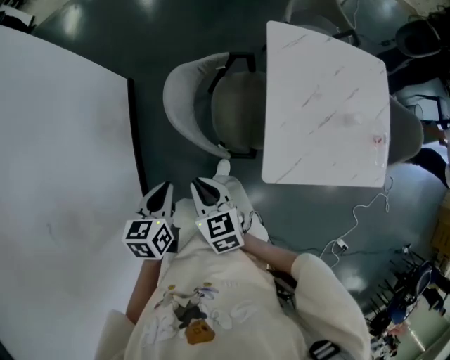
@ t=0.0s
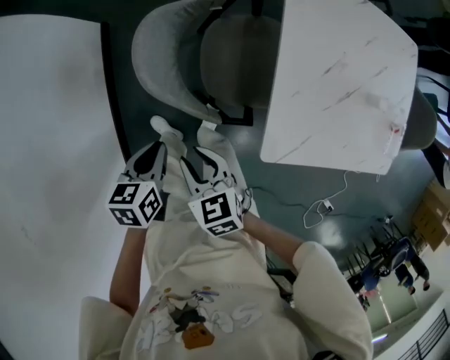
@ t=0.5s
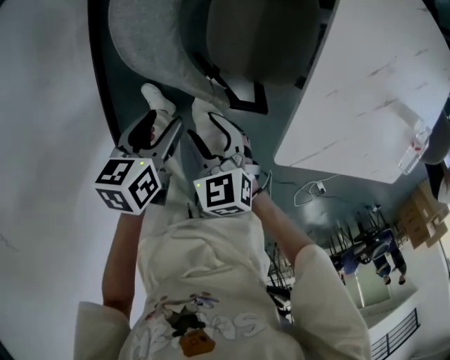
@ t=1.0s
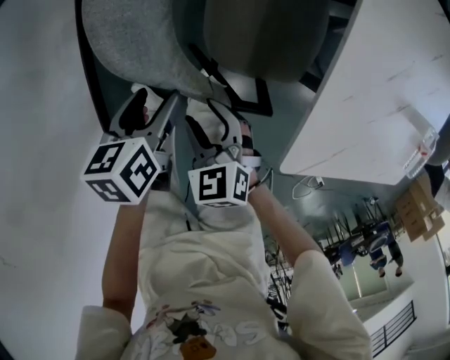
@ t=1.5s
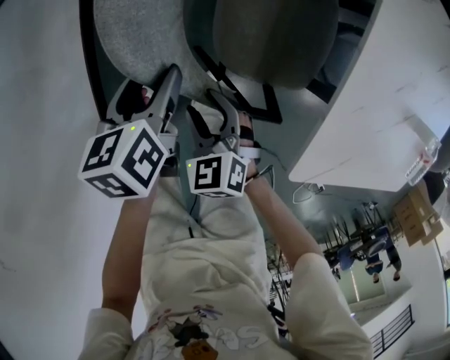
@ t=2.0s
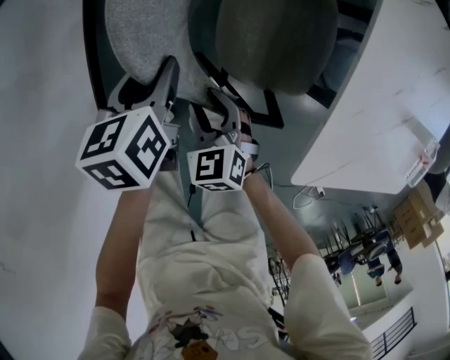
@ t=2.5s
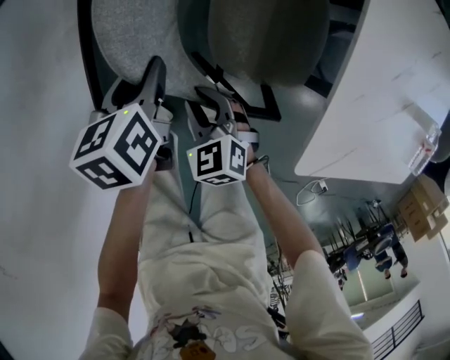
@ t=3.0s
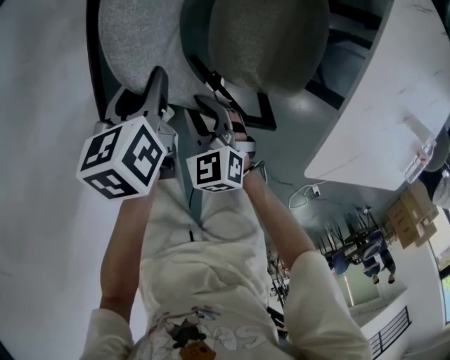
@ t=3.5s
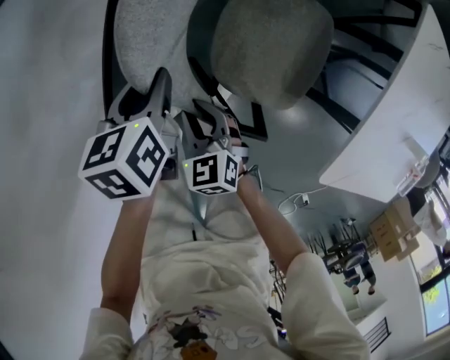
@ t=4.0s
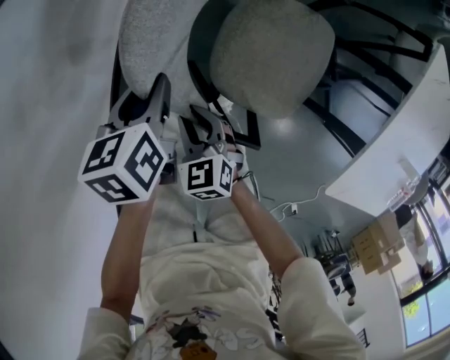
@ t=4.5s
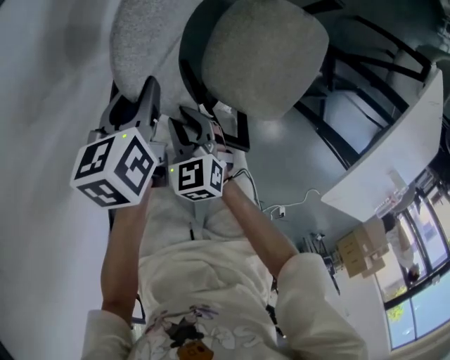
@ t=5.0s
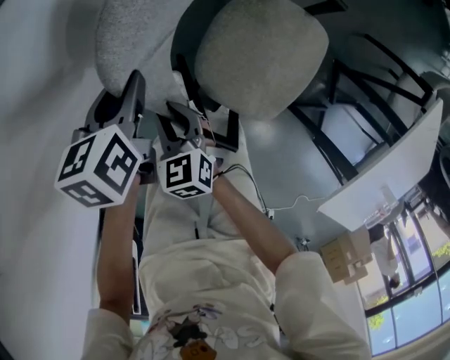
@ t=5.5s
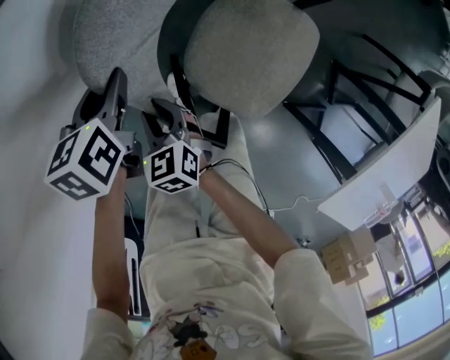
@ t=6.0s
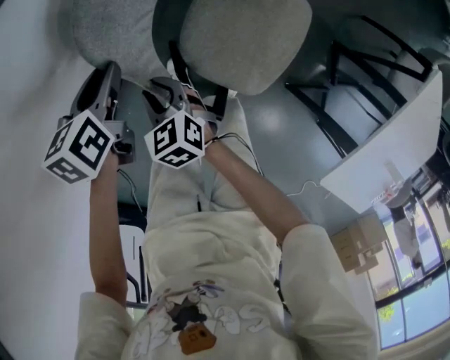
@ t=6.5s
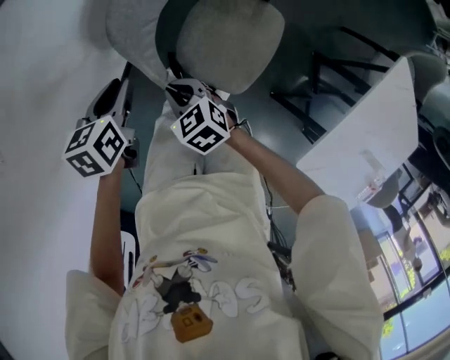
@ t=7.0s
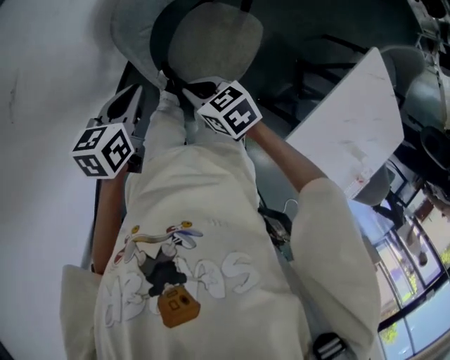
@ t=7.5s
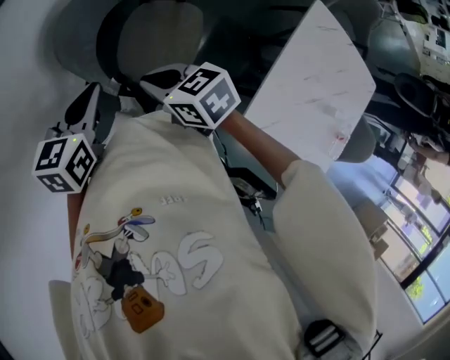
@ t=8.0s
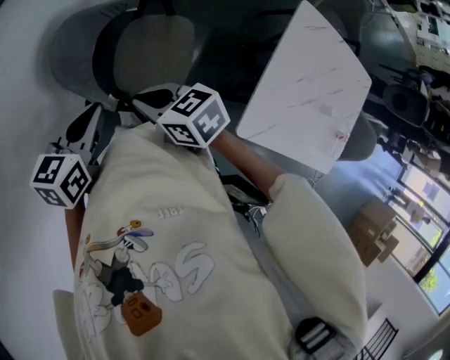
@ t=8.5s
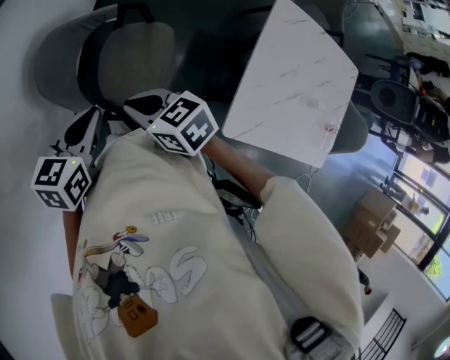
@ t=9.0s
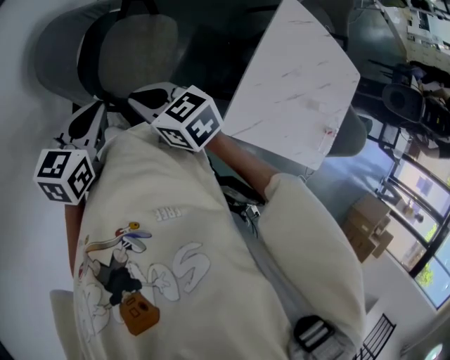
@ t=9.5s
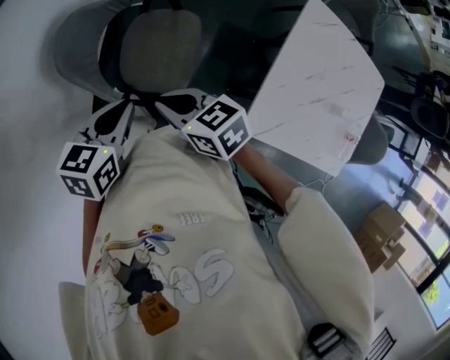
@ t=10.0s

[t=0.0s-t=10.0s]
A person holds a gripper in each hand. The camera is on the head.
t=0.0s to t=2.0s: The left gripper heads downward and forward, covering some 30 cm, and opens up. The right gripper moves downward, some 30 cm, turns by approximately 30 degrees, and opens up.
t=2.0s to t=4.0s: Both grippers move to the left, approximately 15 cm. The left gripper closes its fingers; the right gripper closes its fingers.
t=4.0s to t=6.0s: The right gripper shifts by some 25 cm; the left gripper shifts by about 25 cm, and turns by some 20 degrees.
t=6.0s to t=8.0s: The right gripper travels upward and to the right by about 35 cm, turns by approximately 20 degrees, and closes; the left gripper goes some 35 cm upward, backward and to the right, and swivels about 30 degrees.
t=8.0s to t=10.0s: The two grippers go roughly 10 cm to the right and backward.

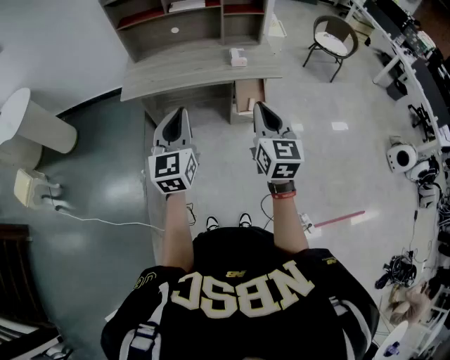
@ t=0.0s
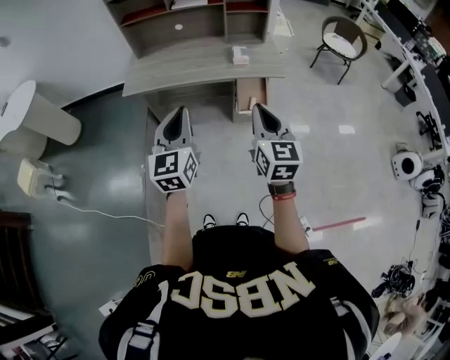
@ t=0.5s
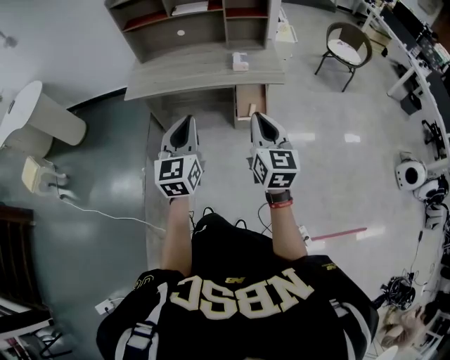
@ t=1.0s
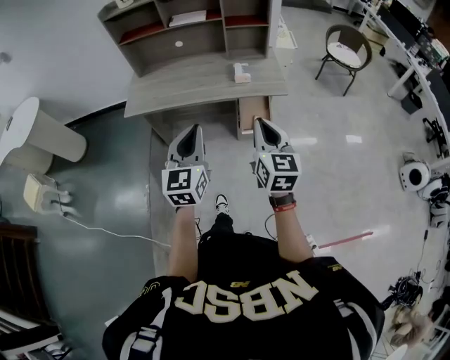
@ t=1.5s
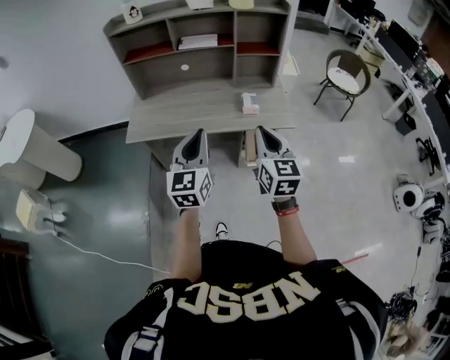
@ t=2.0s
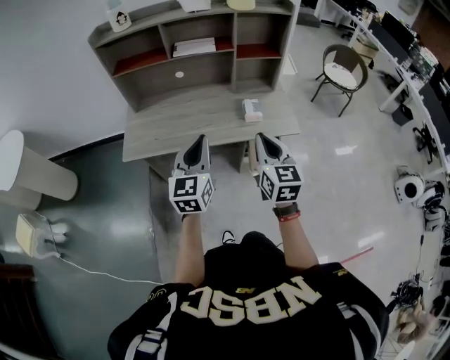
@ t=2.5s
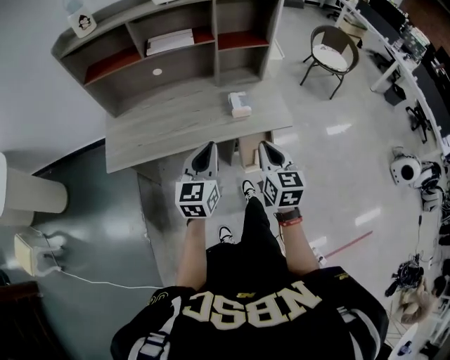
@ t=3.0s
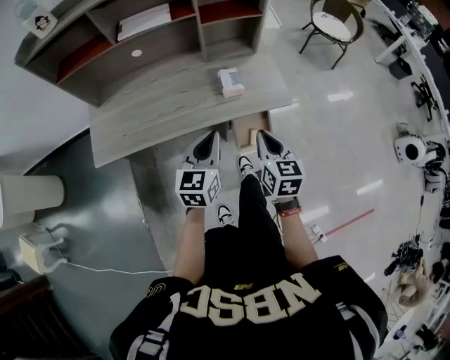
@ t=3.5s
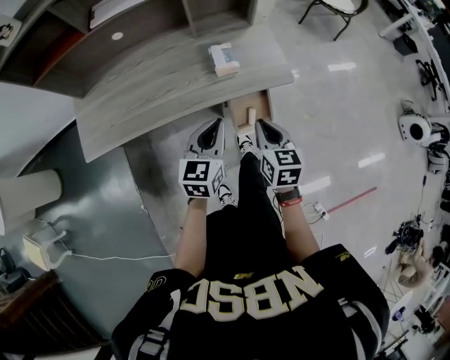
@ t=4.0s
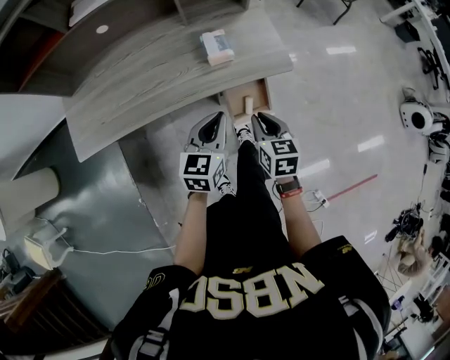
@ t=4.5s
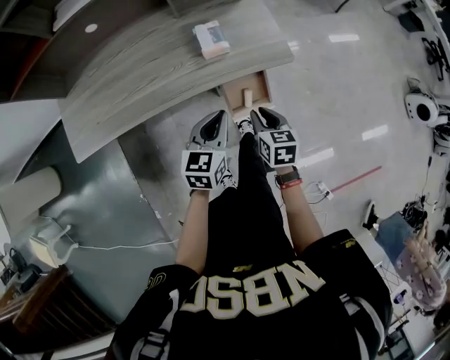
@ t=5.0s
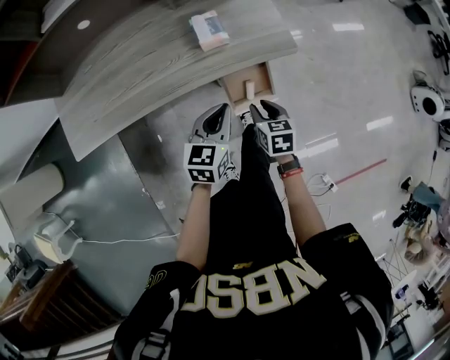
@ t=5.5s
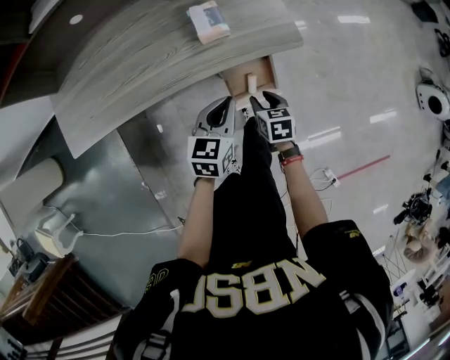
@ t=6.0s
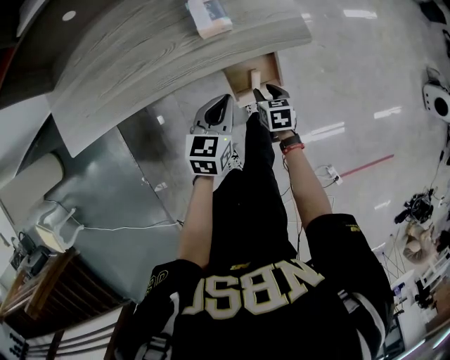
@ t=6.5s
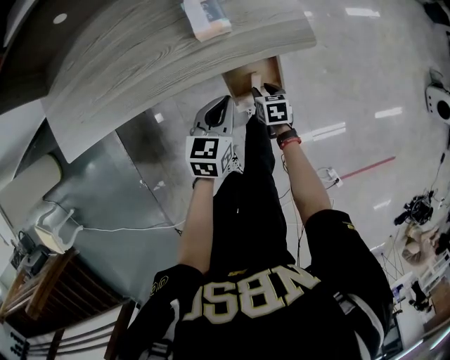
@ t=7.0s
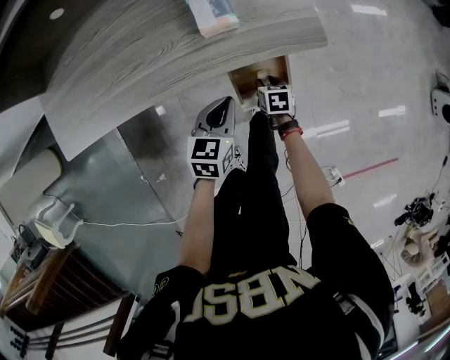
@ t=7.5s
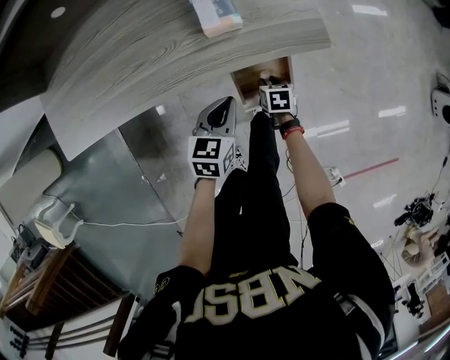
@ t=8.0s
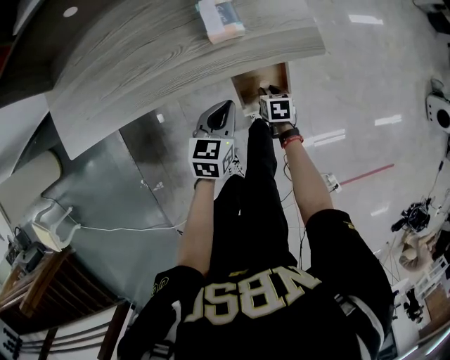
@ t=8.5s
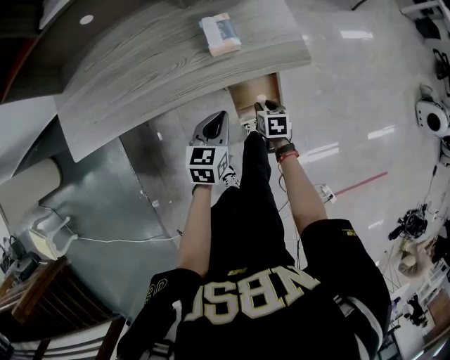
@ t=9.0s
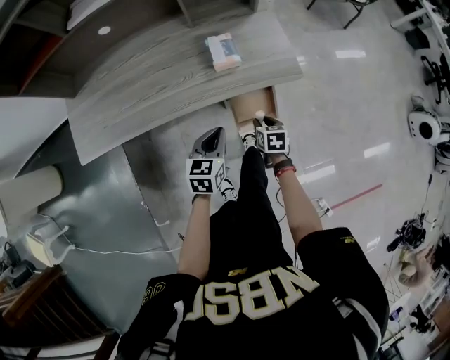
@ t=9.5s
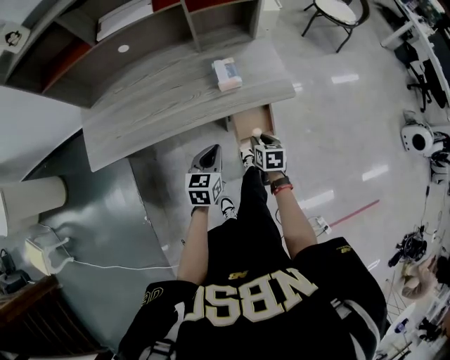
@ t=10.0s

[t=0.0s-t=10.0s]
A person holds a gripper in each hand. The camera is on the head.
t=0.0s to t=2.0s: The grippers both shift forward by roughly 20 cm.
t=2.0s to t=4.0s: The right gripper is displaced downward and forward by roughly 30 cm, and changes its angle by some 30 degrees; the left gripper travels downward, forward and to the right by about 30 cm, and swivels about 30 degrees.
t=4.0s to t=6.0s: The left gripper shifts roughly 15 cm downward and to the right. The right gripper moves downward, roughly 20 cm, changes its angle by roughly 20 degrees, and opens.
t=6.0s to t=8.0s: The right gripper moves downward and forward, about 15 cm; the left gripper is displaced downward by roughly 10 cm.
t=8.0s to t=10.0s: The left gripper goes some 15 cm upward, backward and to the left. Meanwhile the right gripper travels upward by approximately 20 cm.

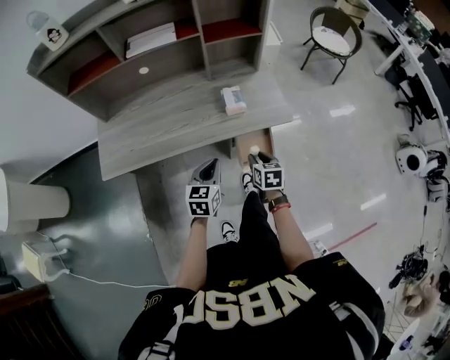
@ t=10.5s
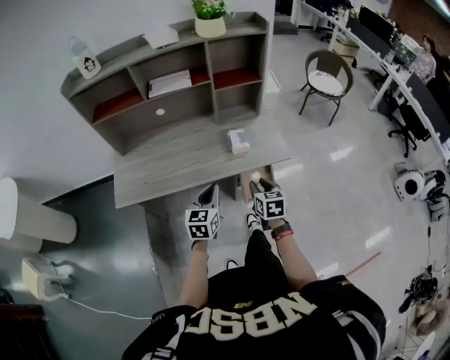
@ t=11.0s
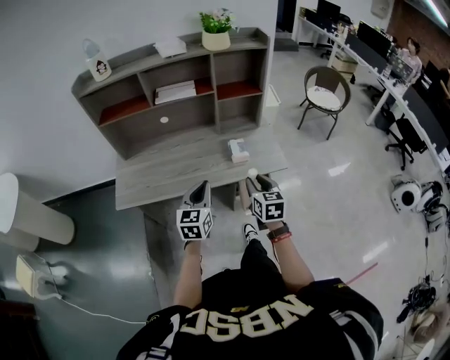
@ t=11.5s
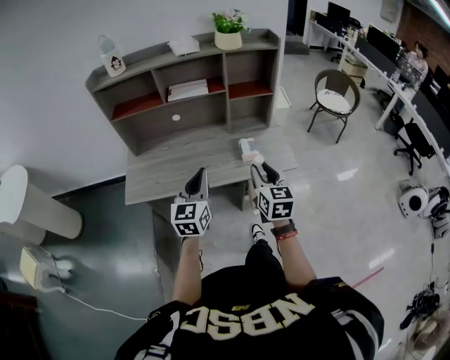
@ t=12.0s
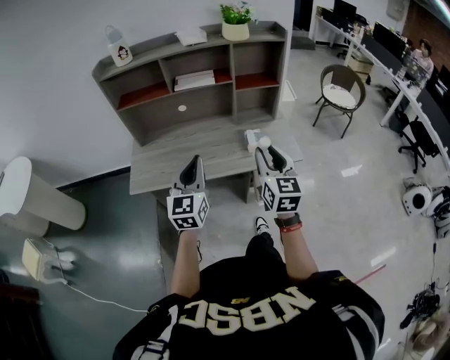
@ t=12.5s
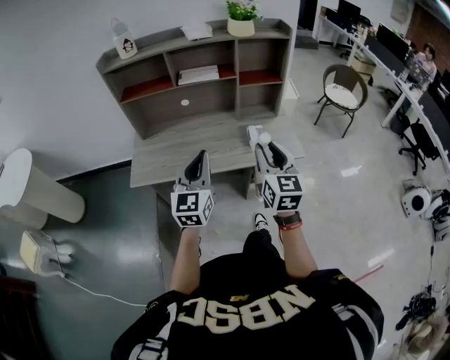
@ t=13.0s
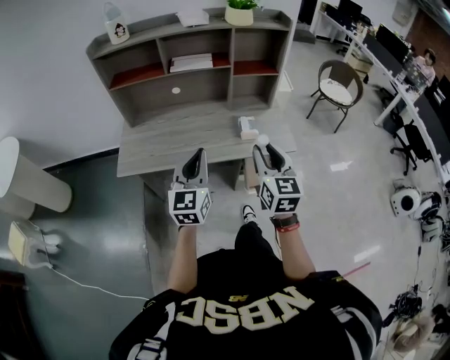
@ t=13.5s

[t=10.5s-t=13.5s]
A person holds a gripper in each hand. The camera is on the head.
t=10.5s to t=12.0s: The right gripper moves upward, roughly 25 cm, and tilts its fingers about 30 degrees upward. The left gripper travels upward and to the left by some 25 cm, and rotates about 30 degrees.
t=12.0s to t=13.5s: The right gripper moves about 5 cm.

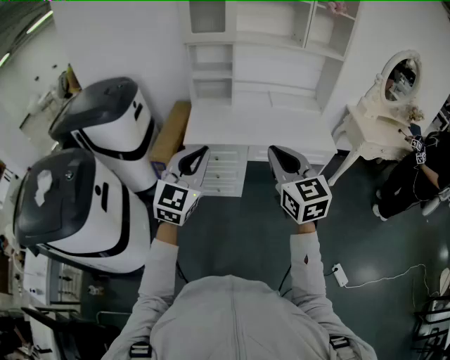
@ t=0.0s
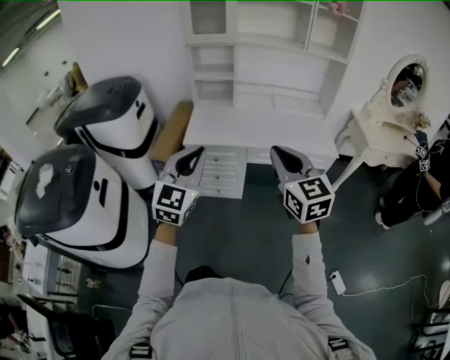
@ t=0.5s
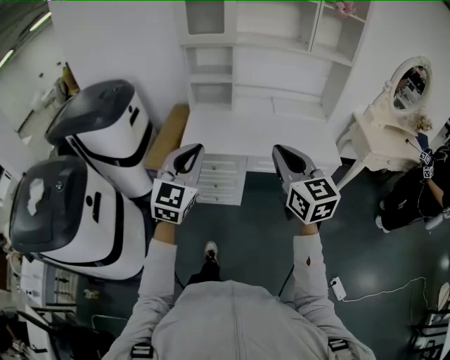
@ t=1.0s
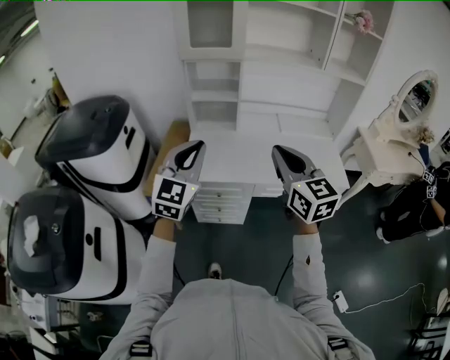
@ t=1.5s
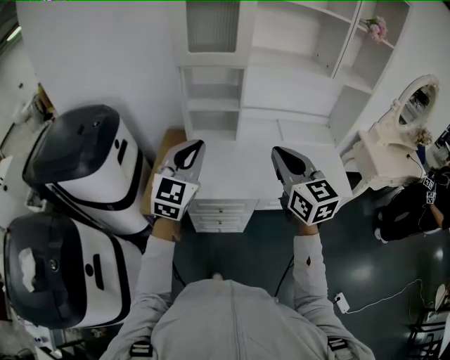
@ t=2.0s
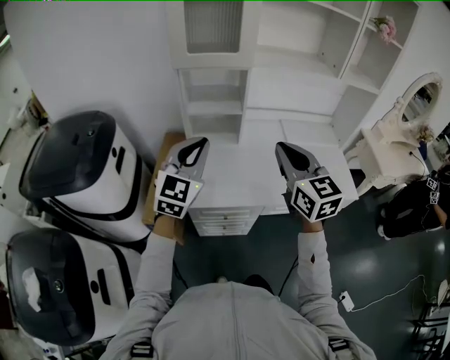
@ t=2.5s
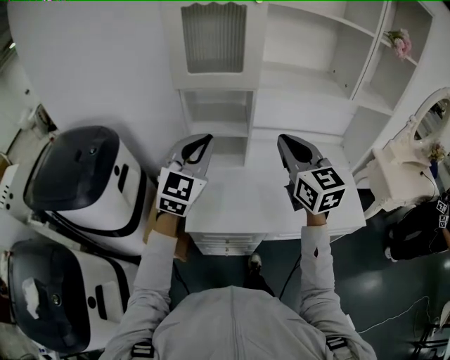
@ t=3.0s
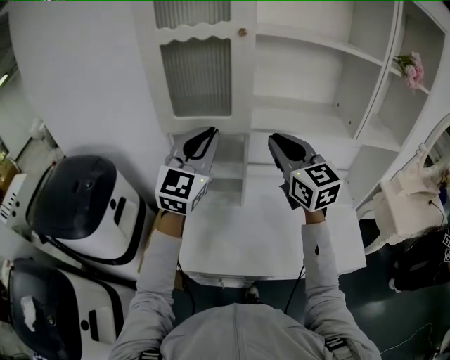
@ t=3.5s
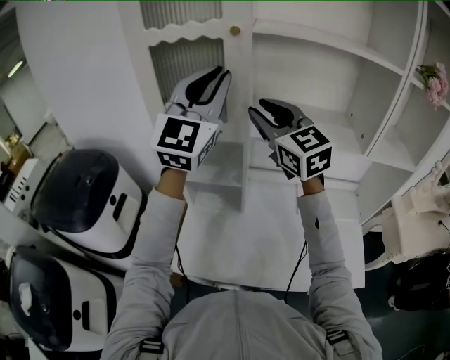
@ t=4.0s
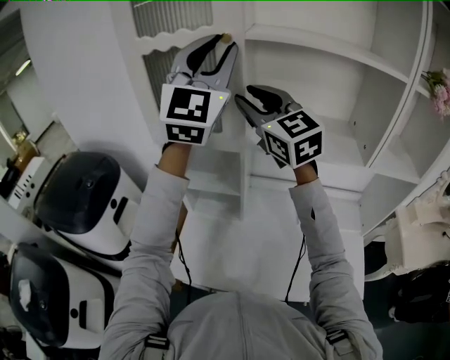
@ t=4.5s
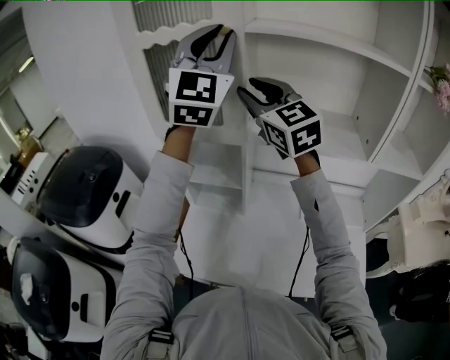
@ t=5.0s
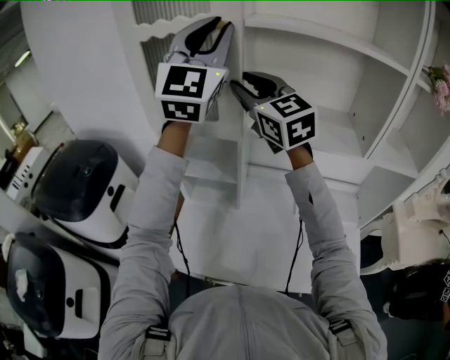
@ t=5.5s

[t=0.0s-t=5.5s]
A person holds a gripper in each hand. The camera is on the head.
t=0.0s to t=2.0s: Both grippers travel together forward, roughly 35 cm.
t=2.0s to t=3.5s: The left gripper goes roughly 30 cm forward and upward. Meanwhile the right gripper heads forward, covering about 30 cm.
t=3.5s to t=5.5s: The right gripper is displaced forward and upward by some 15 cm, and opens, while the left gripper heads upward, covering roughly 20 cm, and turns by roughly 30 degrees.
